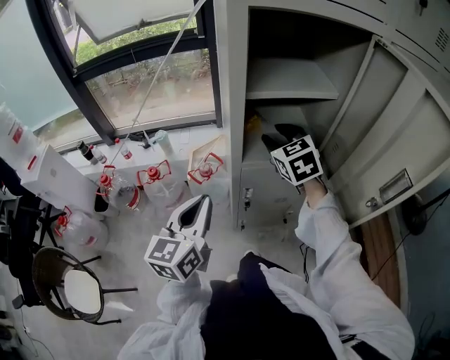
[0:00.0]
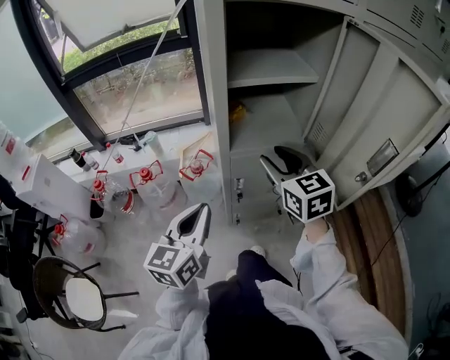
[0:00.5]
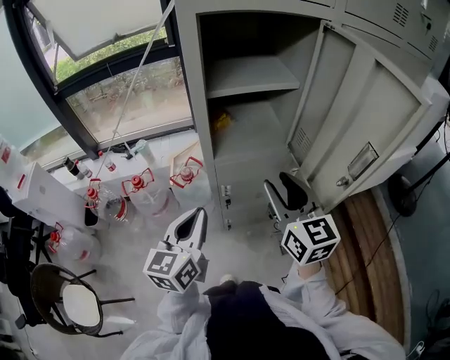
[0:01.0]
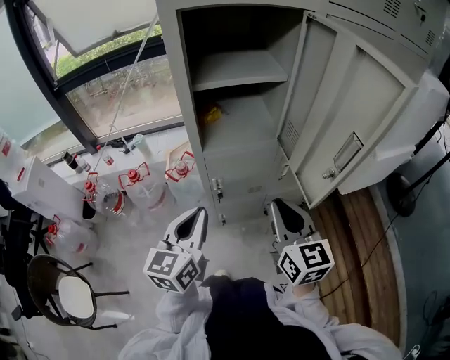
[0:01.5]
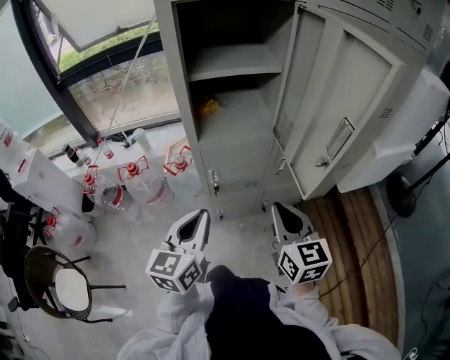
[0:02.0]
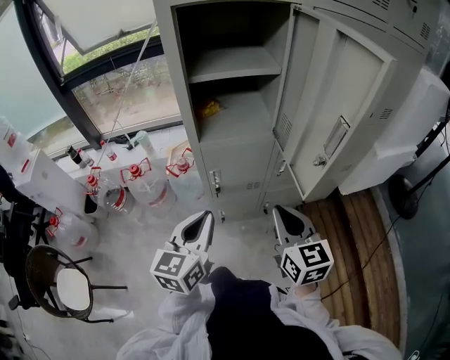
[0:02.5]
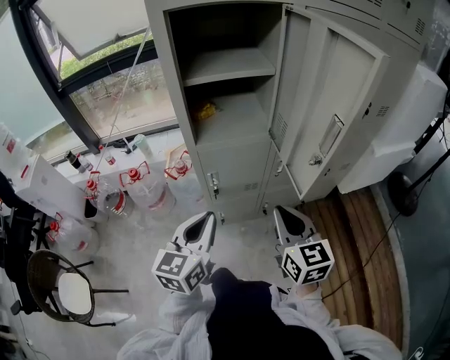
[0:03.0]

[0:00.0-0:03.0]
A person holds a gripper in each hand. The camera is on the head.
0:00.0 to 0:01.5: The right gripper moves backward and to the right, approximately 30 cm, turns by some 30 degrees, and closes up, while the left gripper is displaced to the right and backward by approximately 10 cm.
0:01.5 to 0:03.0: The right gripper changes place by some 5 cm; the left gripper changes place by about 5 cm.

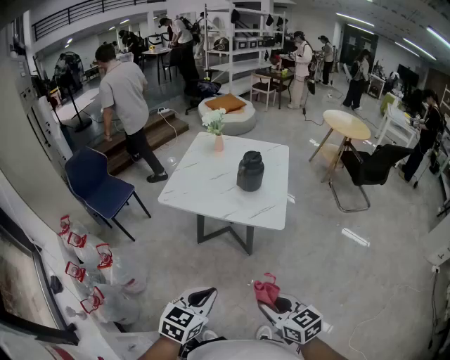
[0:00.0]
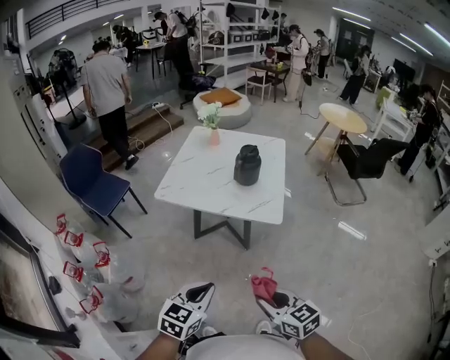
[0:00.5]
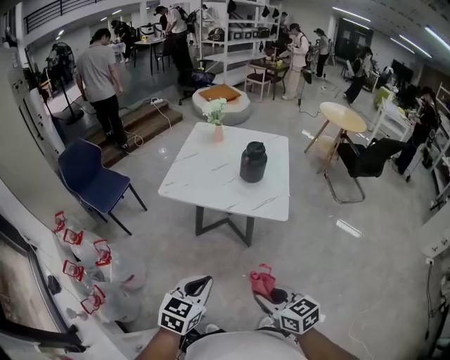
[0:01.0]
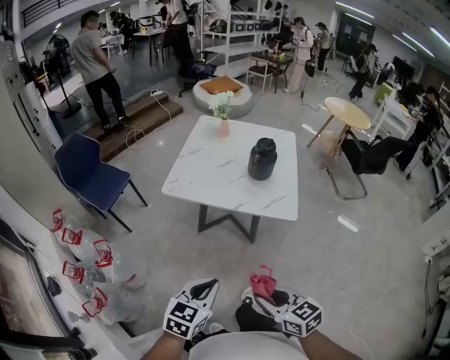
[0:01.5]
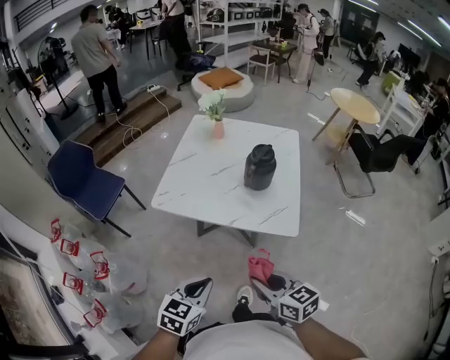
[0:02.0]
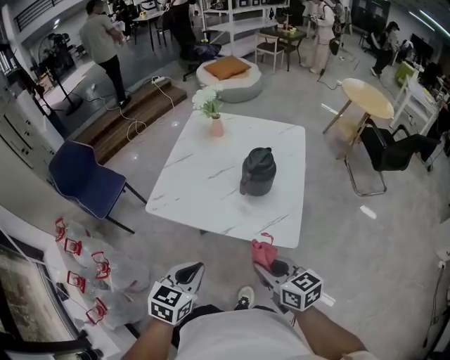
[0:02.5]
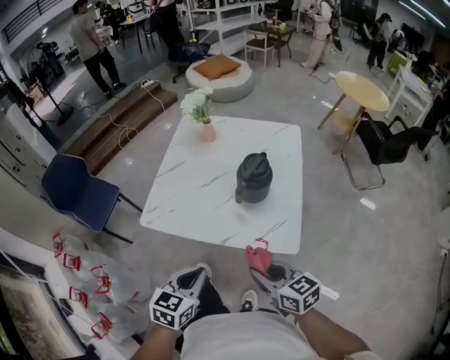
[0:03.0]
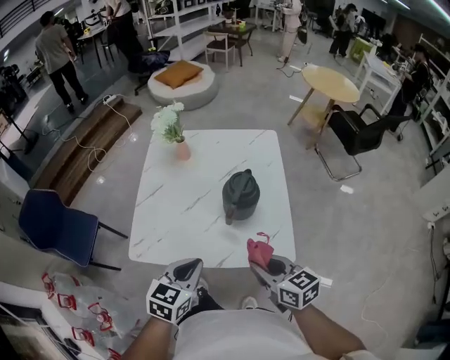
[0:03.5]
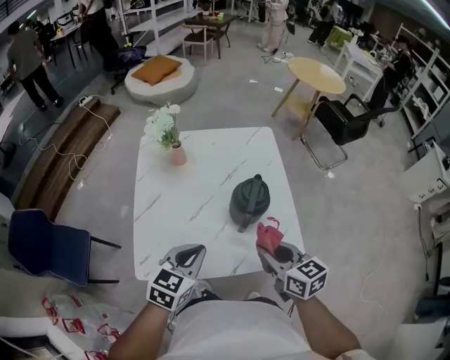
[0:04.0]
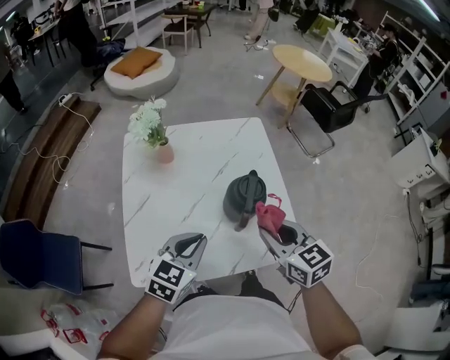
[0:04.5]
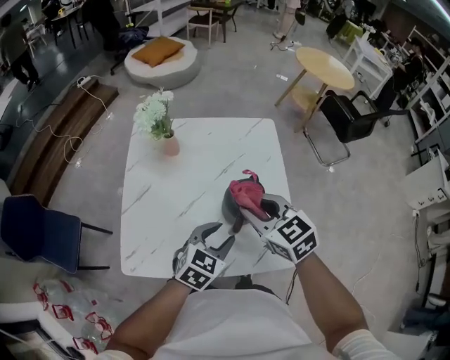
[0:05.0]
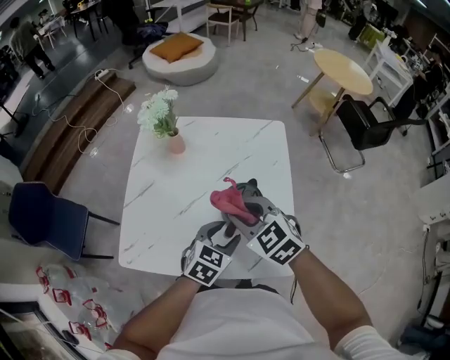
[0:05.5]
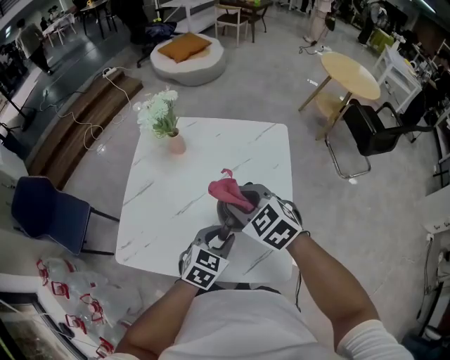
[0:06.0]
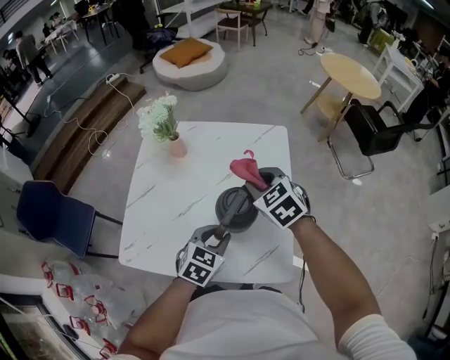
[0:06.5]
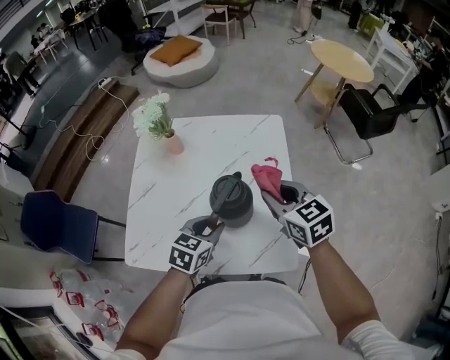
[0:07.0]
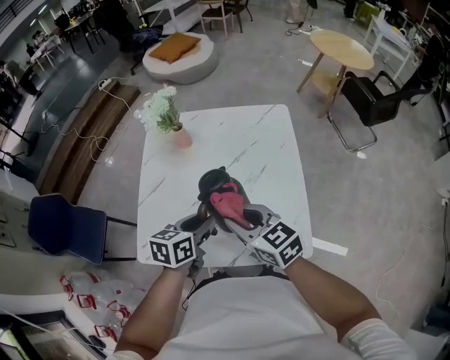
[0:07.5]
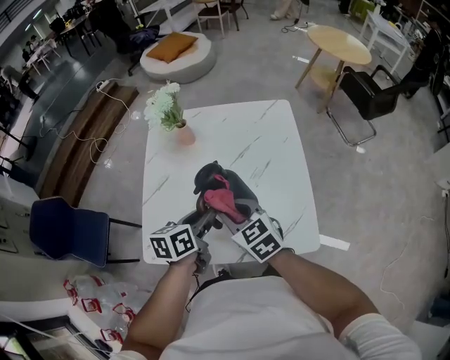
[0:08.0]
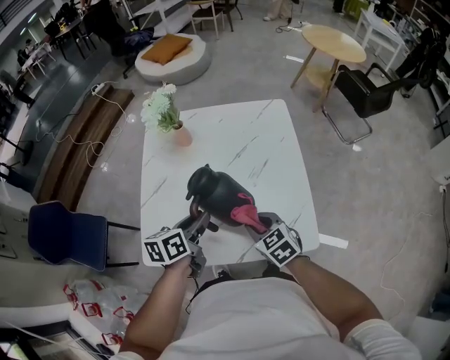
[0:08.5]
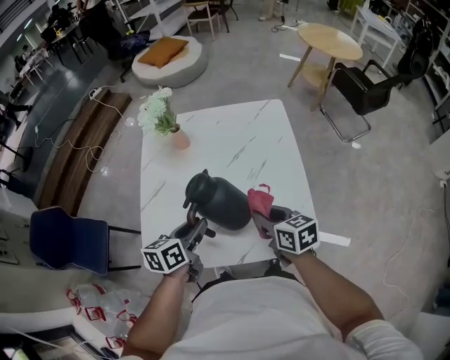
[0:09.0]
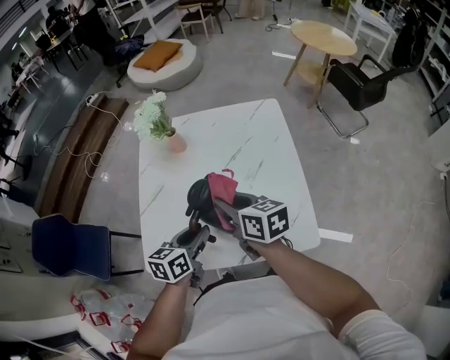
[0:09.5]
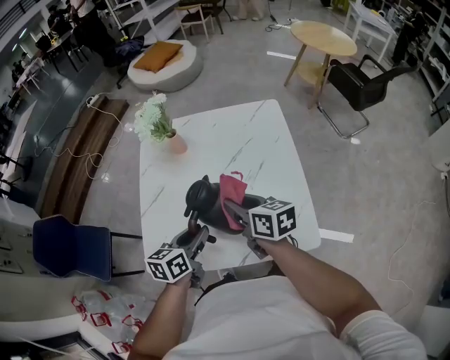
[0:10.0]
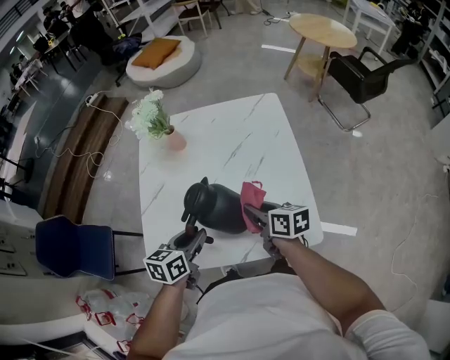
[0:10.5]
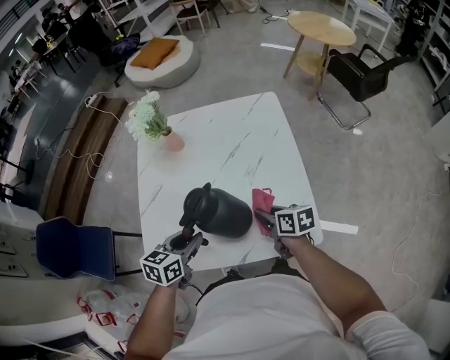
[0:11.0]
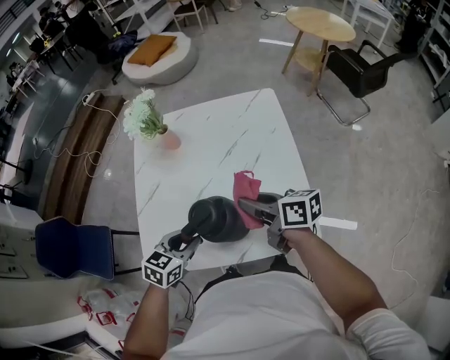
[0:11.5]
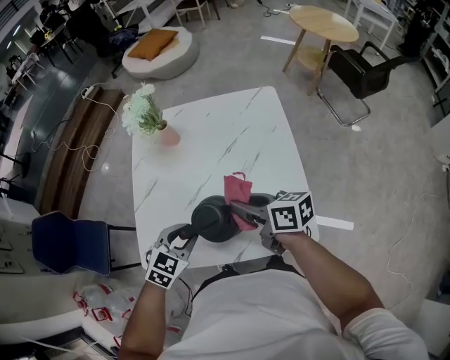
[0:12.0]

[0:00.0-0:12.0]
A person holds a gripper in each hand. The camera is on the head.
0:00.0 to 0:02.0: The grippers both shift forward by some 20 cm.
0:02.0 to 0:04.0: The right gripper shifts by approximately 30 cm, and rotates some 30 degrees, while the left gripper changes place by about 40 cm, and rotates some 20 degrees.
0:04.0 to 0:06.0: The right gripper shifts approximately 15 cm forward, and twists some 50 degrees counterclockwise, seen from behind, while the left gripper is displaced to the right, downward and forward by about 20 cm, and opens up.
0:06.0 to 0:08.0: The left gripper goes about 15 cm to the left, and turns by about 40 degrees. Meanwhile the right gripper is displaced to the left, backward and downward by some 10 cm, and rotates about 30 degrees.
0:08.0 to 0:10.0: The right gripper reaches approximately 10 cm downward, then returns, and swivels some 40 degrees.
0:10.0 to 0:12.0: The left gripper rolls clockwise, seen from behind, by about 50 degrees; the right gripper moves roughly 15 cm downward and comes back.

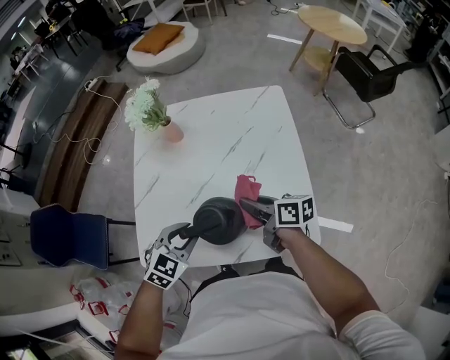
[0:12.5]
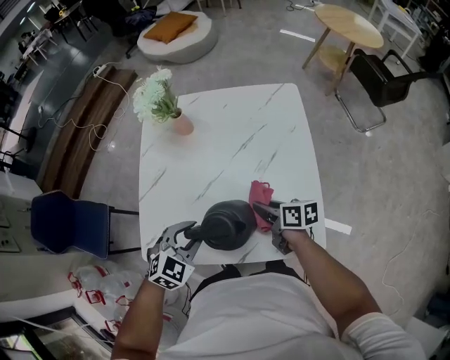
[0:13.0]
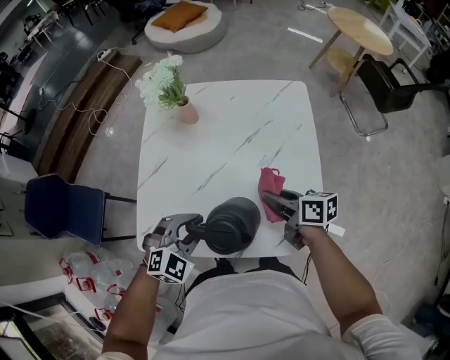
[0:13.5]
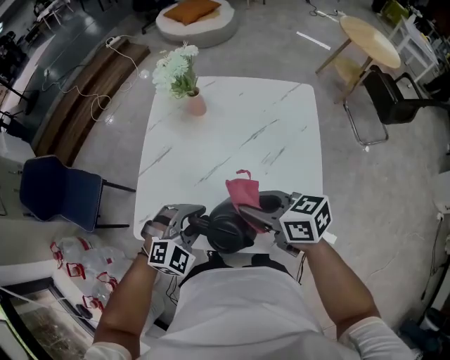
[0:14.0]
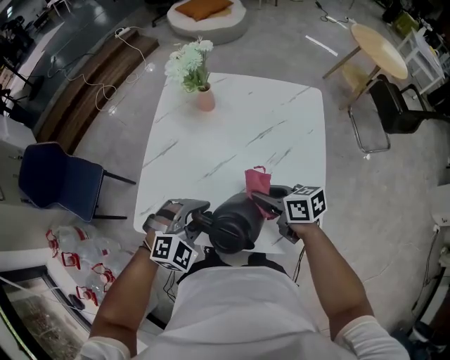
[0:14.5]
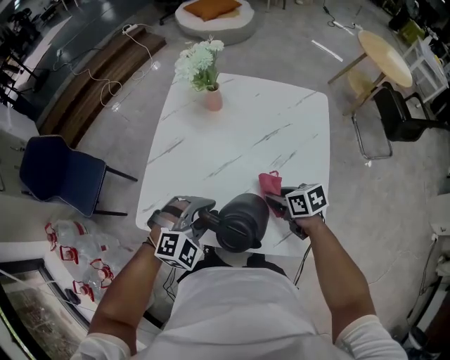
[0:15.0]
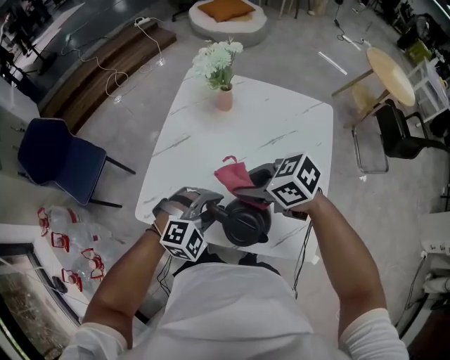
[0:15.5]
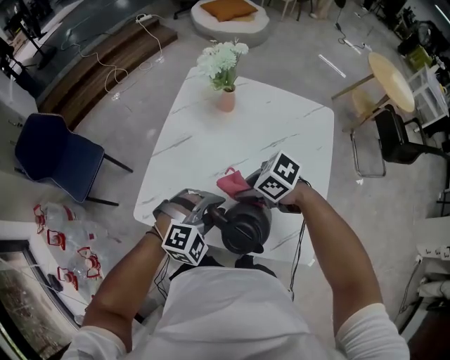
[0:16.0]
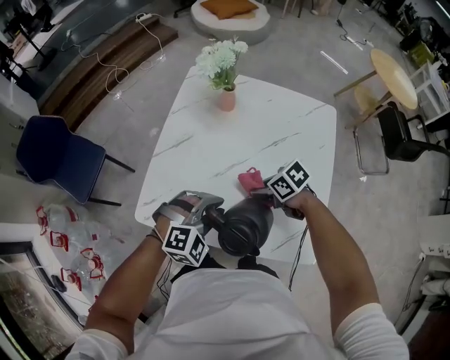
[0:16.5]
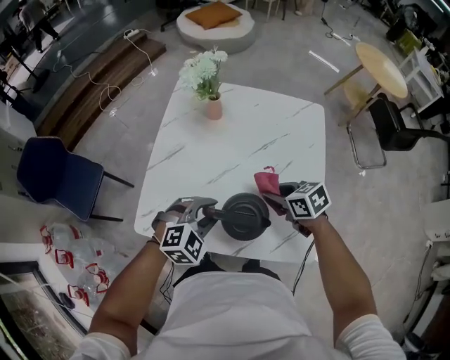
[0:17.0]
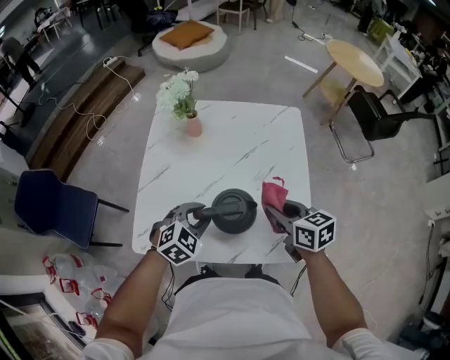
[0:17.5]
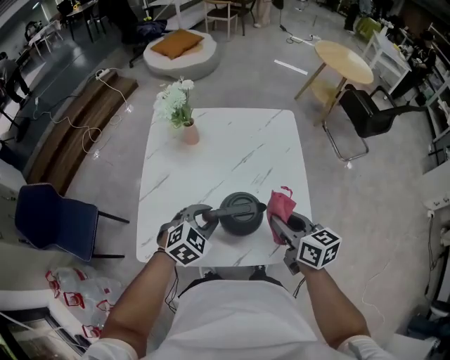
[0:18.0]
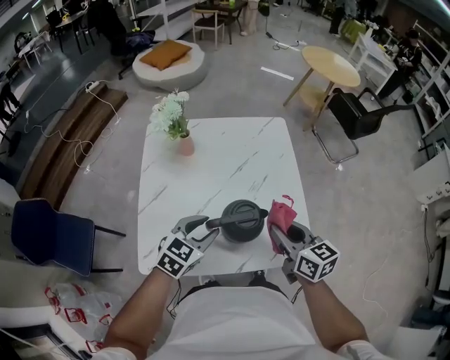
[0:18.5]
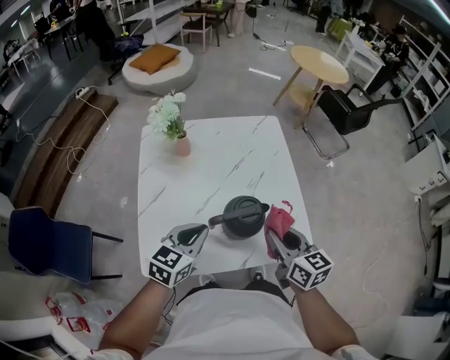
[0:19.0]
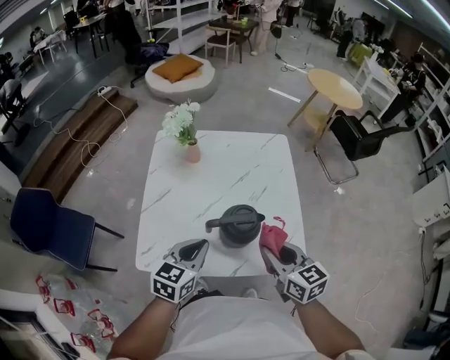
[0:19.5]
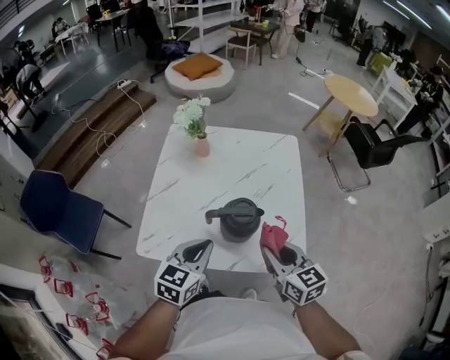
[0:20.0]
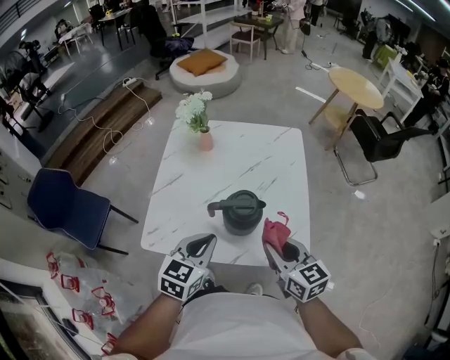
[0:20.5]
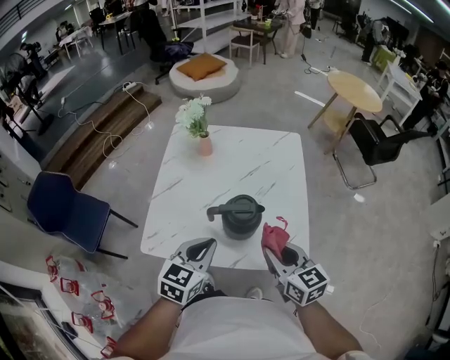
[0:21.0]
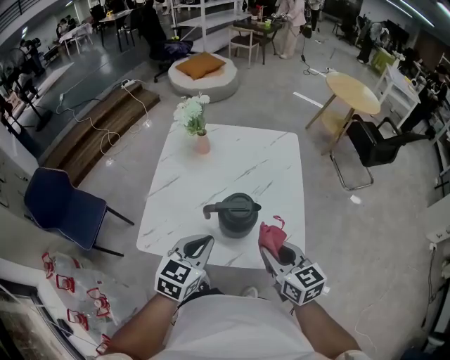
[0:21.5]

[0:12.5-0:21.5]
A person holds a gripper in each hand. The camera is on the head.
0:12.5 to 0:14.5: The right gripper goes up and down, approximately 15 cm each way, reversing 2 times, and rotates some 30 degrees. The left gripper turns by some 30 degrees.
0:14.5 to 0:17.0: The right gripper moves up and down over about 15 cm, changing direction 3 times, and changes its angle by about 20 degrees.
0:17.0 to 0:19.5: The left gripper travels upward by about 10 cm, rolls counterclockwise, seen from behind, by some 40 degrees, and closes its fingers; the right gripper heads upward, covering some 15 cm, and turns by approximately 40 degrees.
0:19.5 to 0:21.5: The left gripper shifts by about 5 cm.

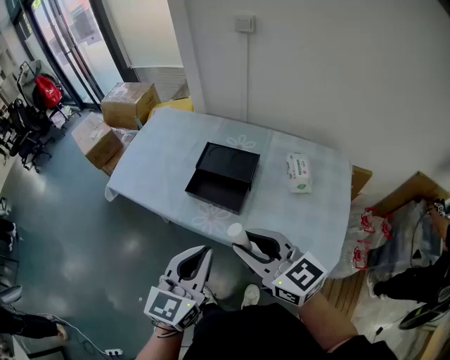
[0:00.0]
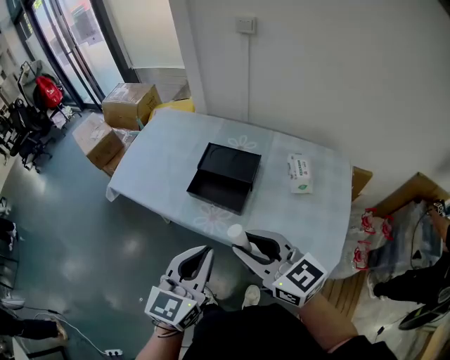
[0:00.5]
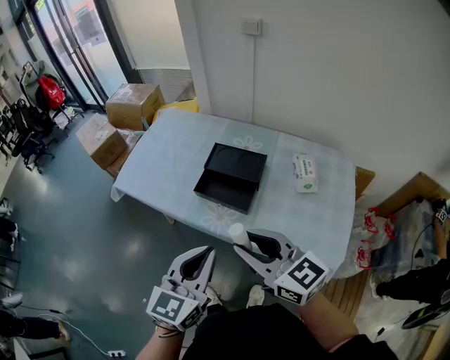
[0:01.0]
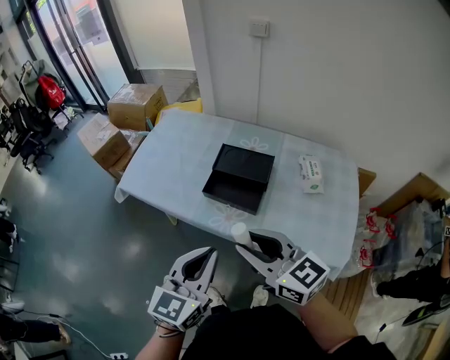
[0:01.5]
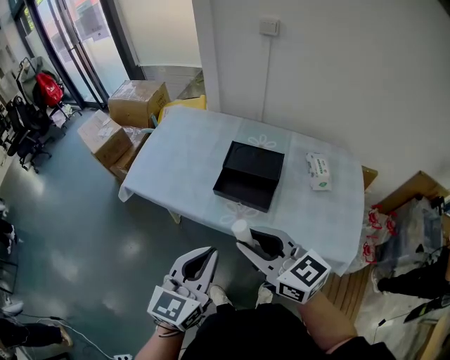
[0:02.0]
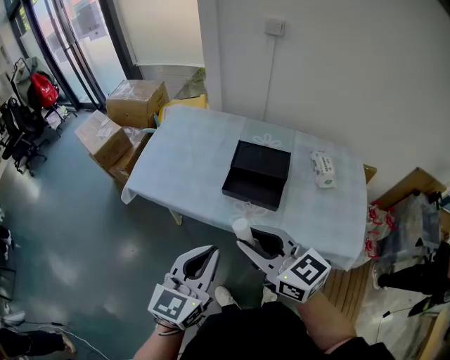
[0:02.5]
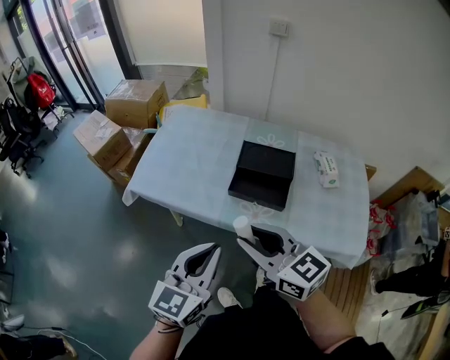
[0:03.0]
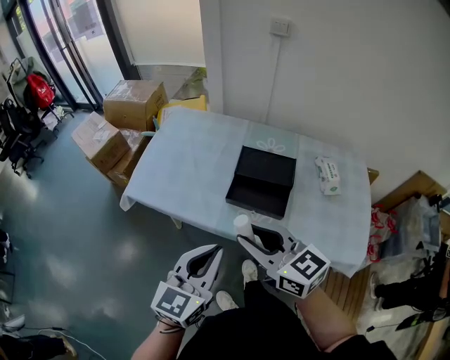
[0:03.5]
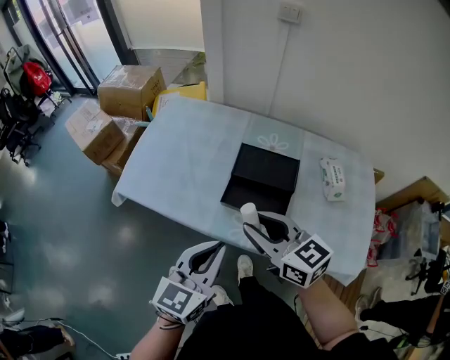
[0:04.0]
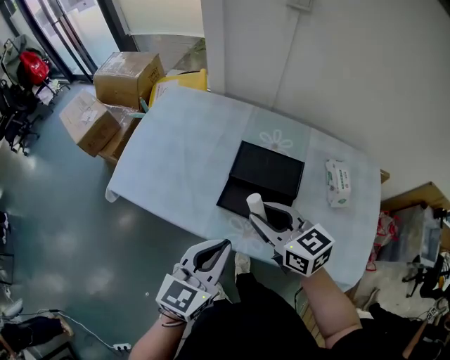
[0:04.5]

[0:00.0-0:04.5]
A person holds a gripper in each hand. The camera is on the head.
0:00.0 to 0:02.0: The two grippers go about 10 cm to the left.
0:02.0 to 0:04.5: Both grippers travel together forward and downward, approximately 20 cm.
